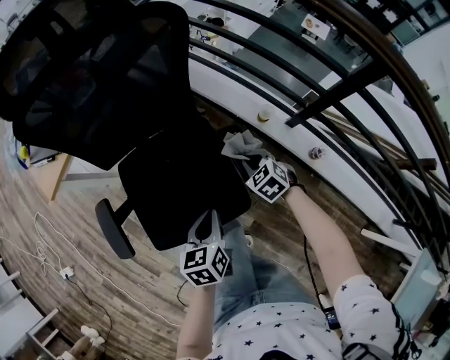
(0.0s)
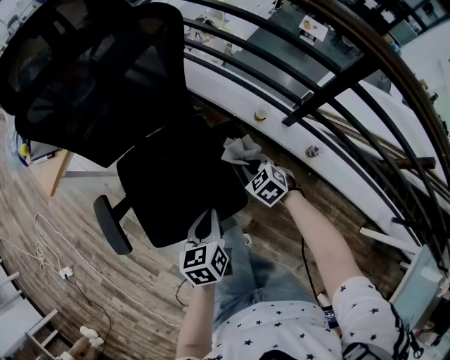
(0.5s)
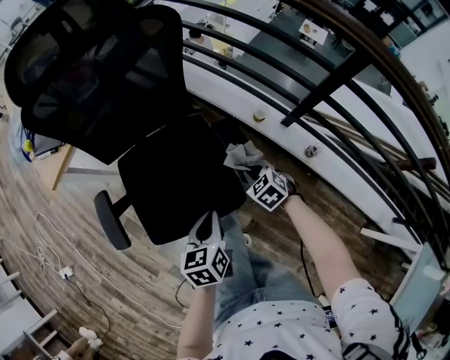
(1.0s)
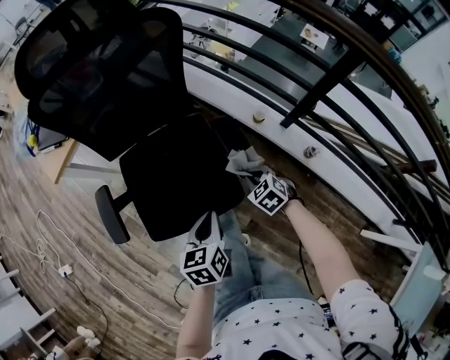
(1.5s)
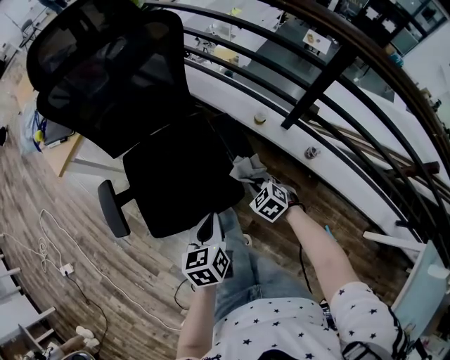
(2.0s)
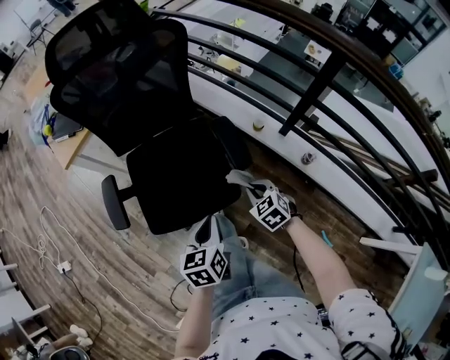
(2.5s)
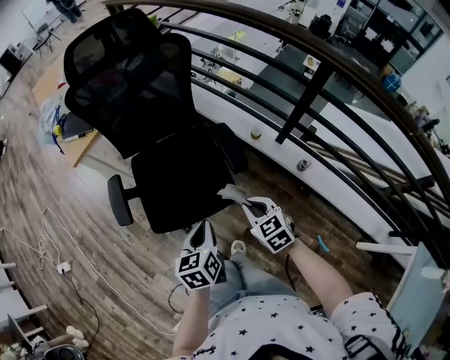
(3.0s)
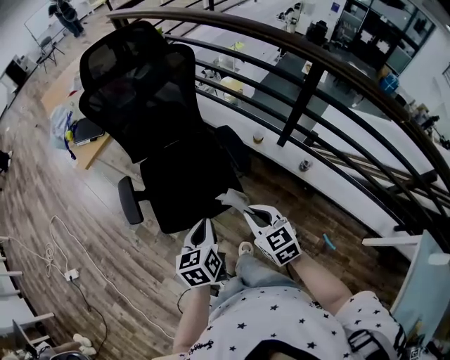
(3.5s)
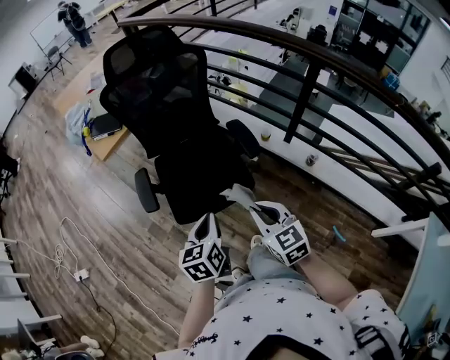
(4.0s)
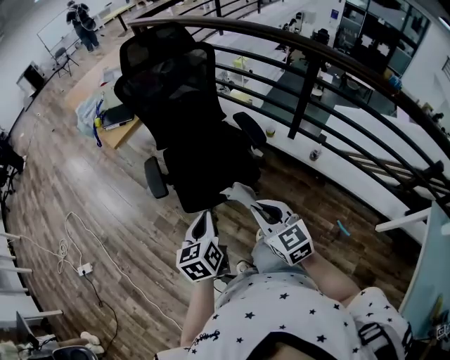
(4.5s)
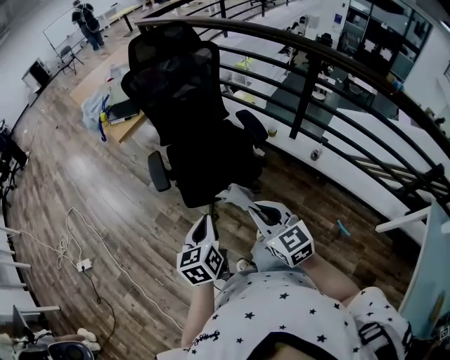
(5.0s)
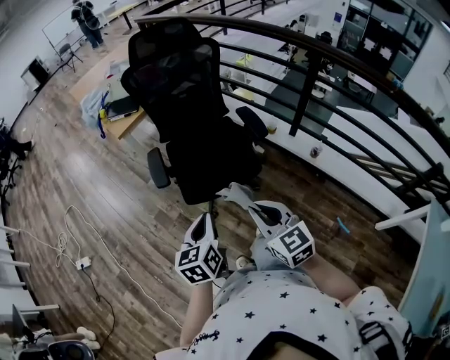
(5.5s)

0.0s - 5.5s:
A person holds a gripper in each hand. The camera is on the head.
0.0s - 2.0s: The right gripper heads backward, covering approximately 15 cm. Meanwhile the left gripper moves backward, about 10 cm.
2.0s - 3.5s: The left gripper moves upward and backward, approximately 10 cm, while the right gripper travels upward and backward by about 25 cm, and rotates approximately 30 degrees.
3.5s - 5.5s: The left gripper moves backward and to the left, about 20 cm; the right gripper heads backward, to the left and upward, covering some 25 cm.

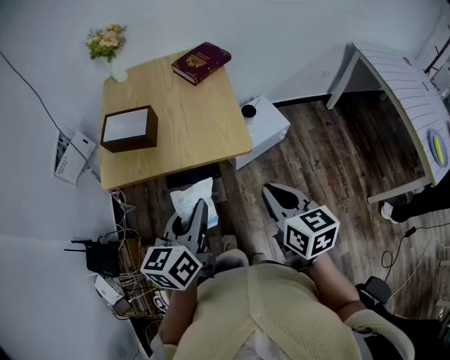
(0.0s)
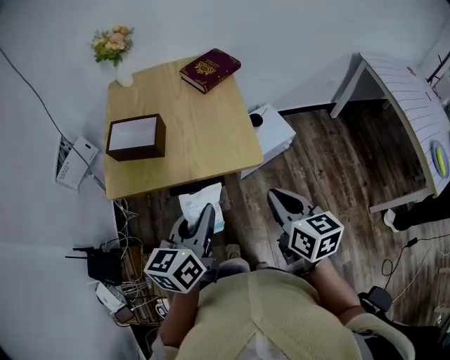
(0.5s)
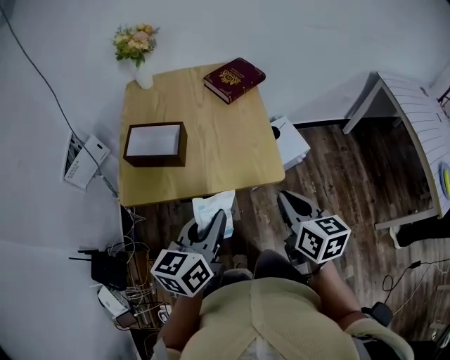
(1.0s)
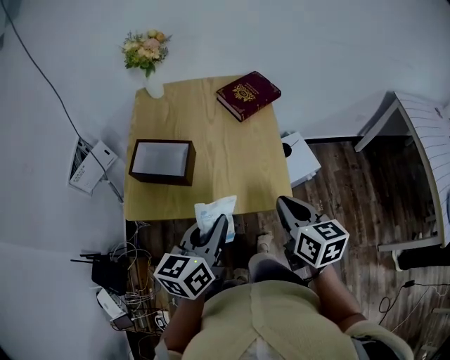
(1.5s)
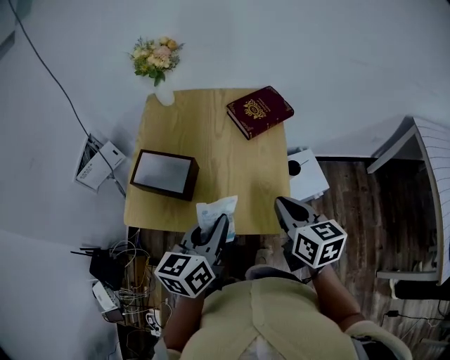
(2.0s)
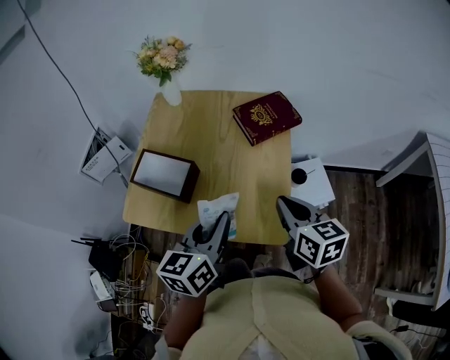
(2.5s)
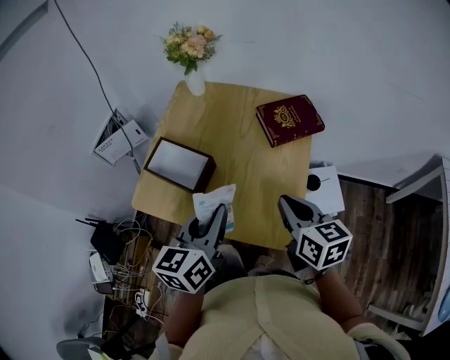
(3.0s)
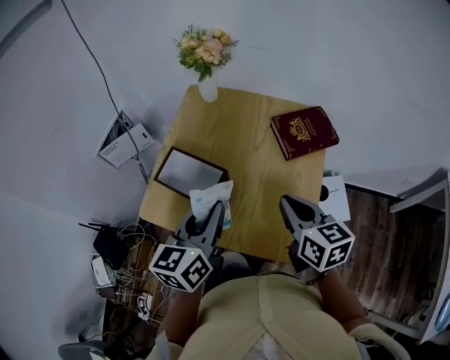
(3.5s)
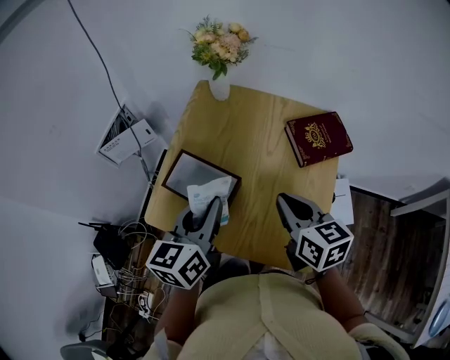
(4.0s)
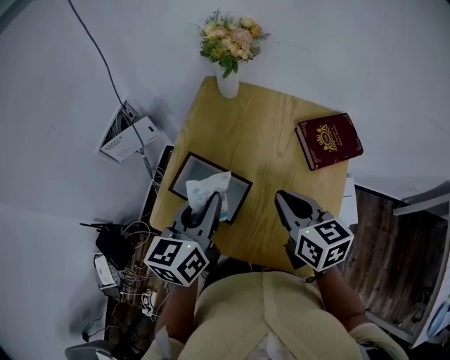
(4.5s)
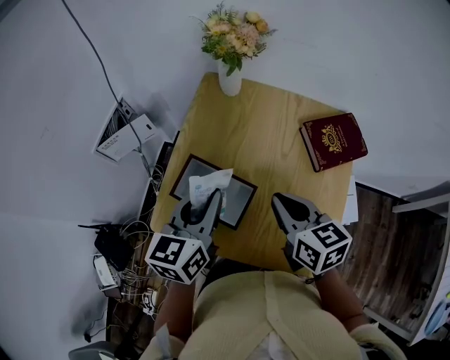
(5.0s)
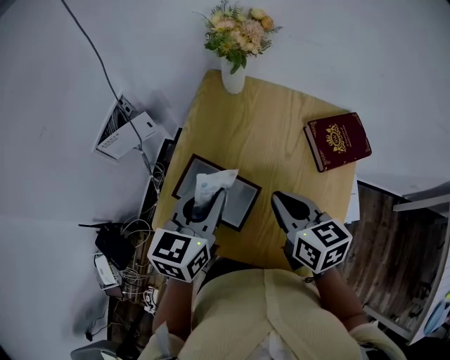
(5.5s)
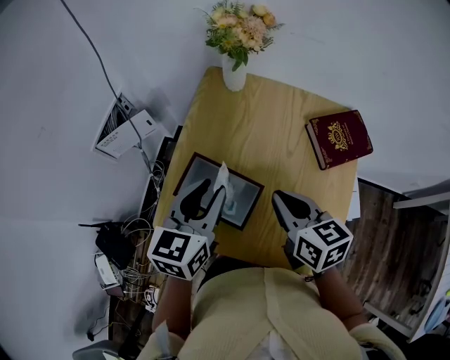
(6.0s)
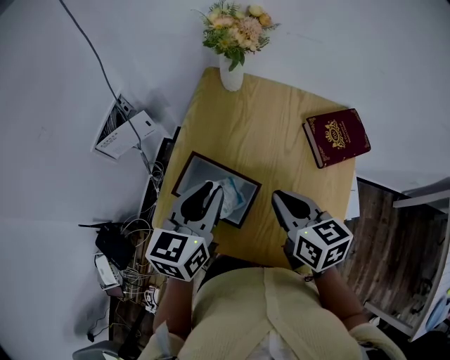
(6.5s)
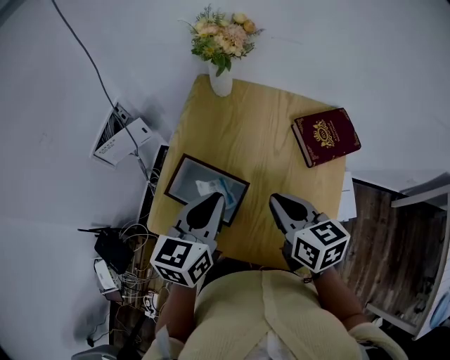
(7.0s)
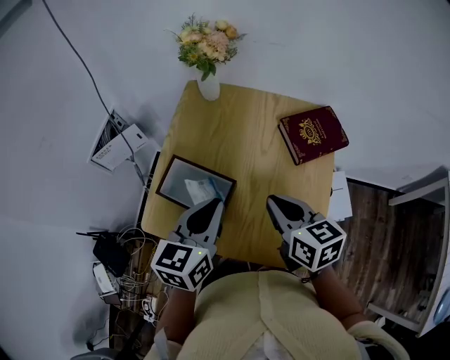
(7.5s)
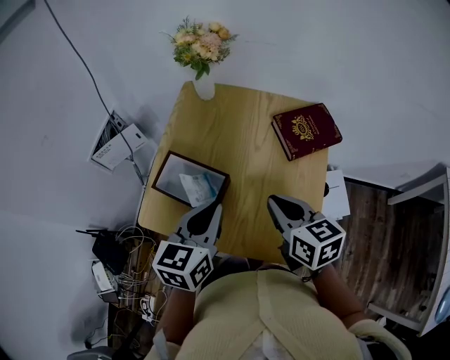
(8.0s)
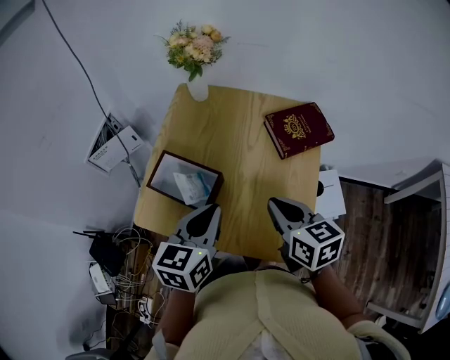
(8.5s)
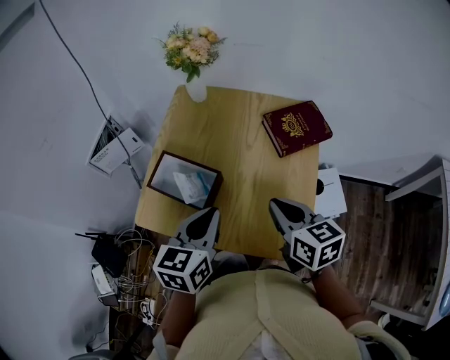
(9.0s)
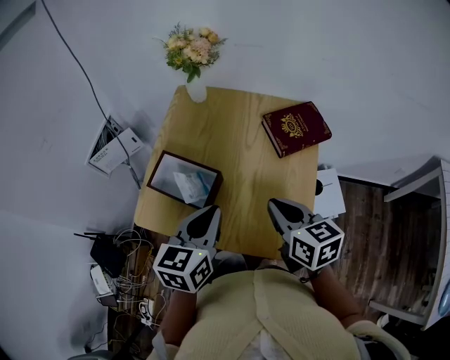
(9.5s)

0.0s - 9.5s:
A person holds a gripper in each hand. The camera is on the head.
0.0s - 2.0s: Both grippers move forward, some 20 cm.
2.0s - 4.0s: Both grippers move forward and to the left, about 15 cm.
4.0s - 5.5s: The right gripper shifts some 5 cm to the left. The left gripper heads forward, covering roughly 5 cm.
5.5s - 7.5s: The right gripper shifts by about 5 cm. Meanwhile the left gripper heads to the right and backward, covering some 10 cm.
7.5s - 9.5s: The left gripper travels backward by some 5 cm. Meanwhile the right gripper changes place by some 5 cm.

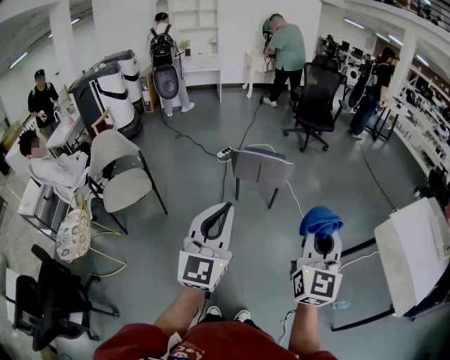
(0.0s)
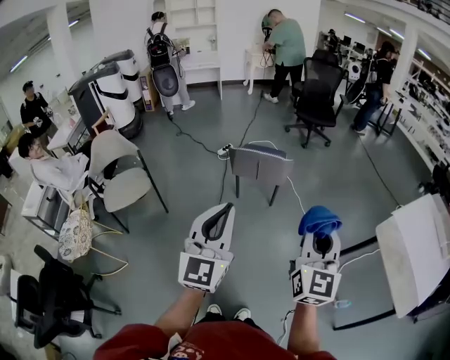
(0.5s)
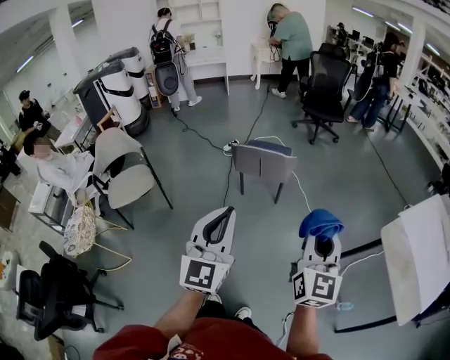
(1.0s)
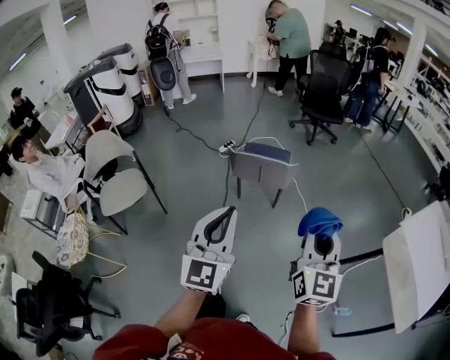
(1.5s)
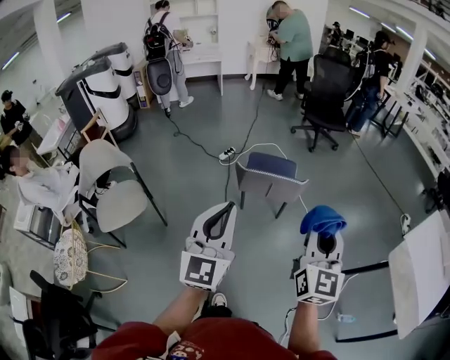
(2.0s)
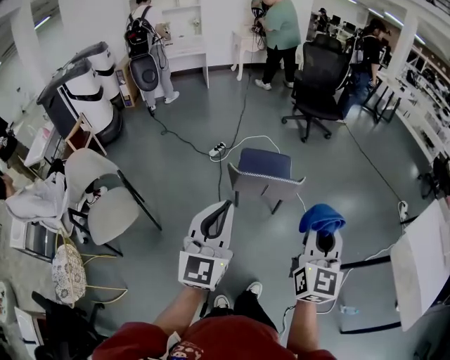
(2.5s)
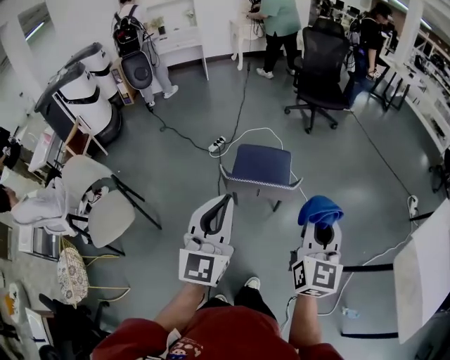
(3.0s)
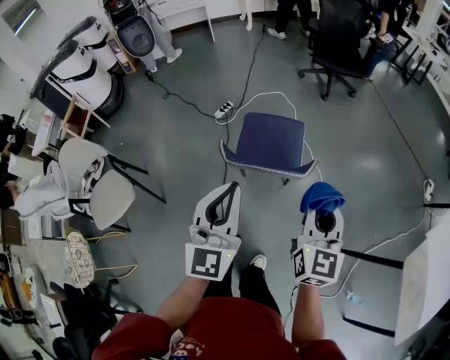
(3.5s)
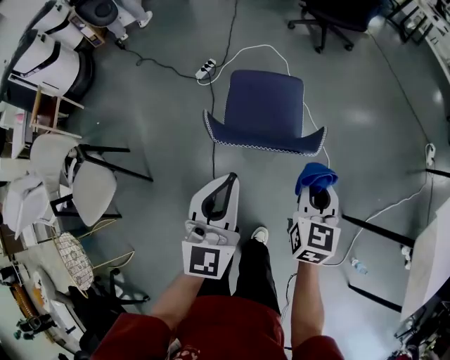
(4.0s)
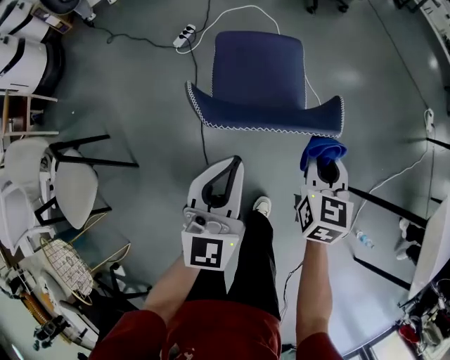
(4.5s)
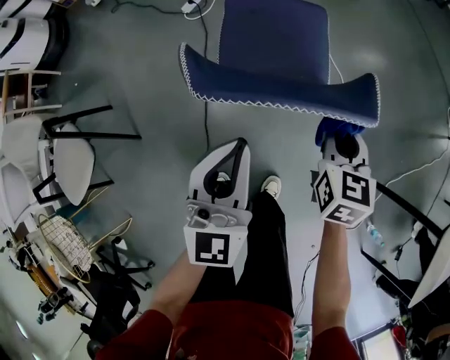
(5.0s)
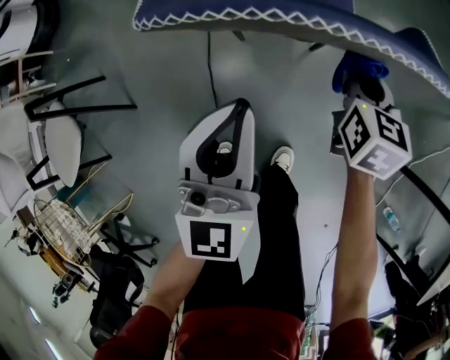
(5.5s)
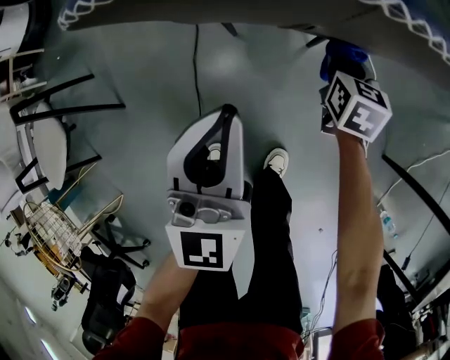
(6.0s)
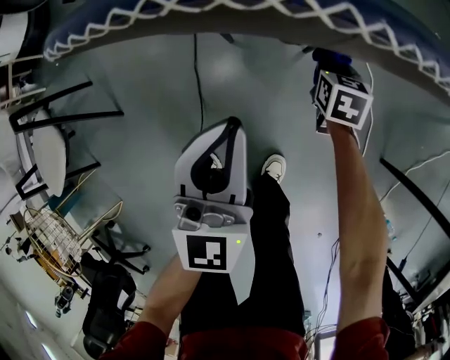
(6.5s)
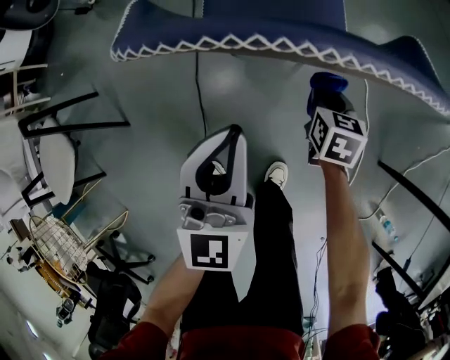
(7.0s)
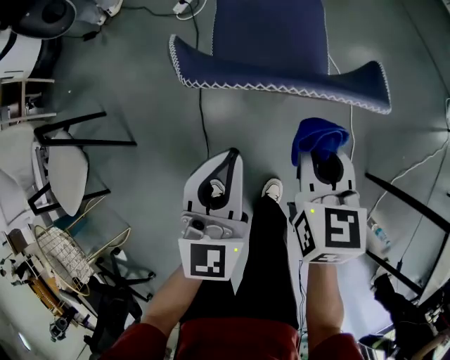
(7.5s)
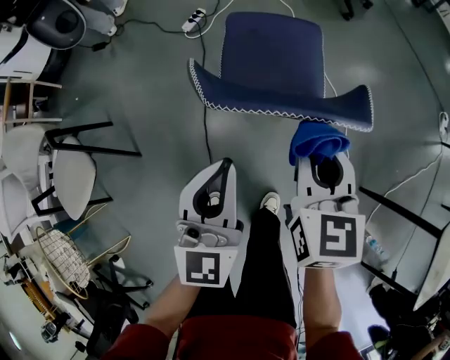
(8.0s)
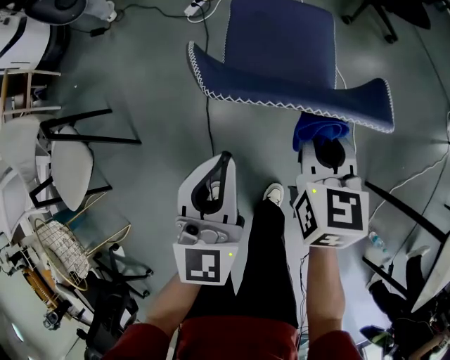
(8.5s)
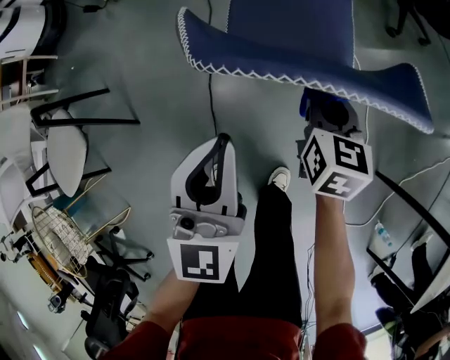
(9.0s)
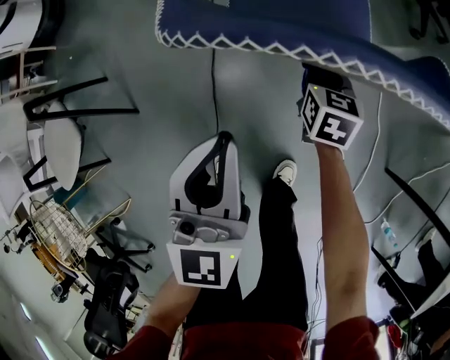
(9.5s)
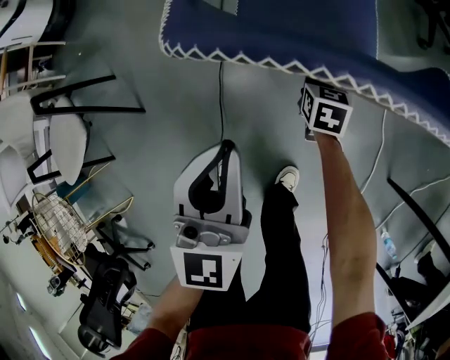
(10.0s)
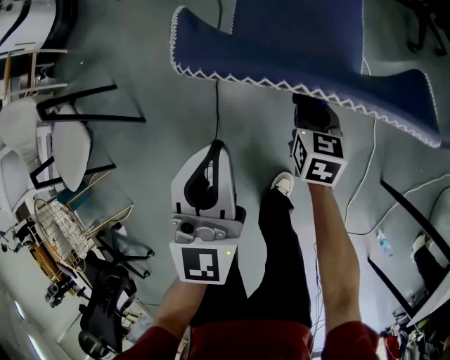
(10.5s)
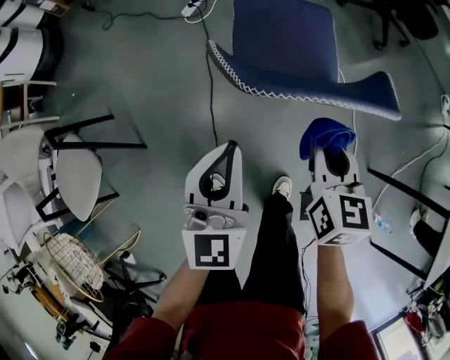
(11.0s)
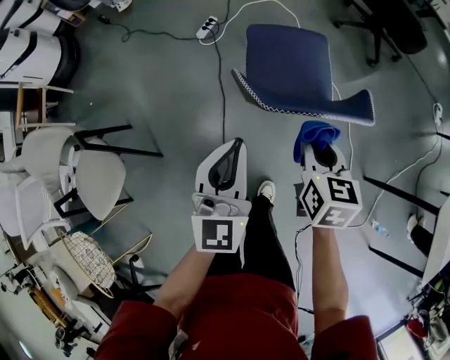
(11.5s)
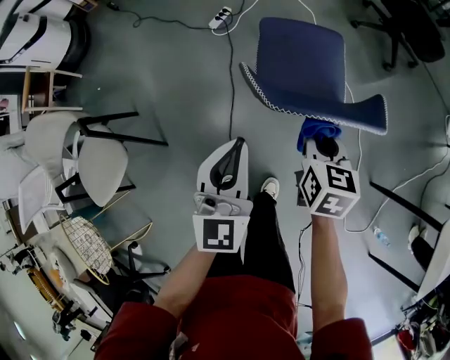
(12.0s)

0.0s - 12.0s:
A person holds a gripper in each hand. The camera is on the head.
0.0s - 2.0s: The two grippers go about 20 cm forward and to the left.
2.0s - 4.0s: The left gripper travels forward and downward by some 35 cm, while the right gripper goes some 40 cm downward and forward, and tips its fingers downward by roughly 30 degrees.
4.0s - 6.0s: Both grippers move downward, about 35 cm.
6.0s - 8.0s: The right gripper is displaced upward by roughly 35 cm. Meanwhile the left gripper is displaced upward by approximately 15 cm.
8.0s - 10.0s: The right gripper is displaced downward by some 35 cm, and swivels about 20 degrees, while the left gripper goes about 10 cm downward.
10.0s - 12.0s: The right gripper goes approximately 35 cm upward. The left gripper shifts roughly 20 cm upward and to the left.
